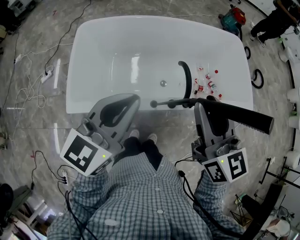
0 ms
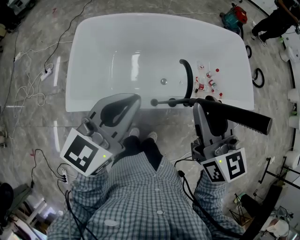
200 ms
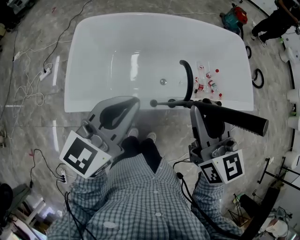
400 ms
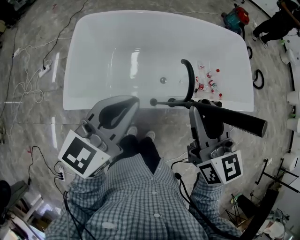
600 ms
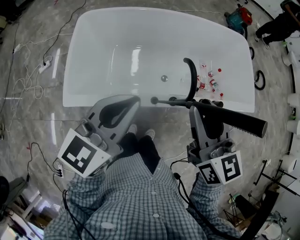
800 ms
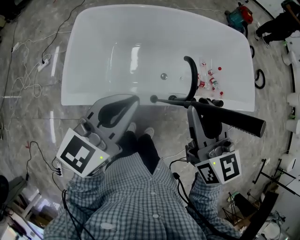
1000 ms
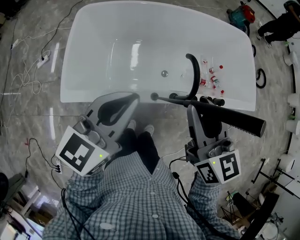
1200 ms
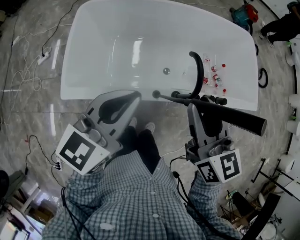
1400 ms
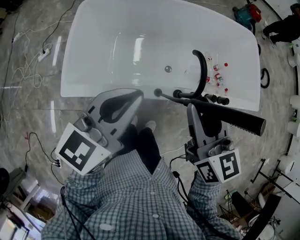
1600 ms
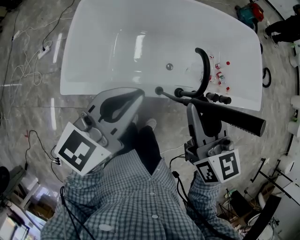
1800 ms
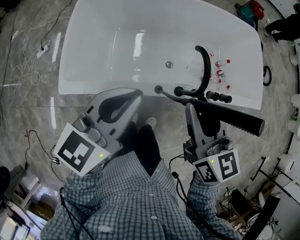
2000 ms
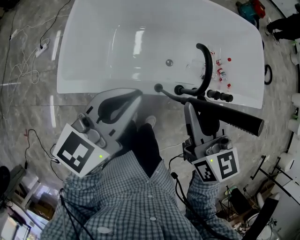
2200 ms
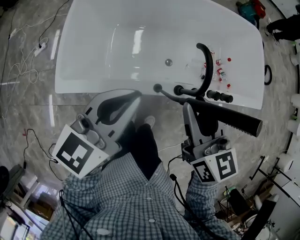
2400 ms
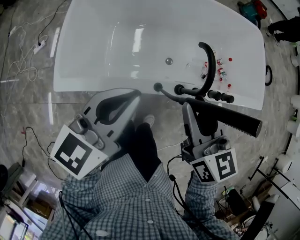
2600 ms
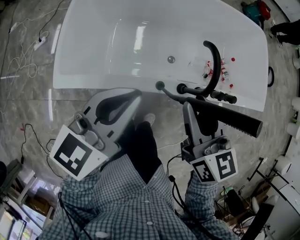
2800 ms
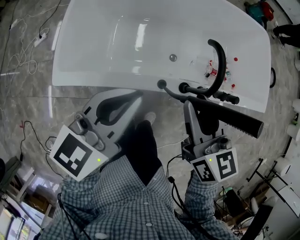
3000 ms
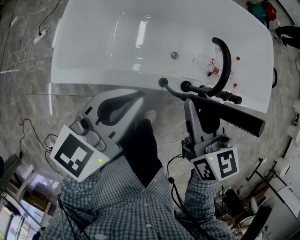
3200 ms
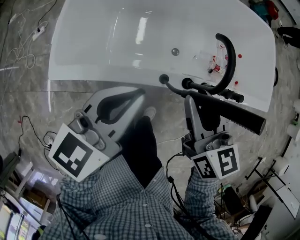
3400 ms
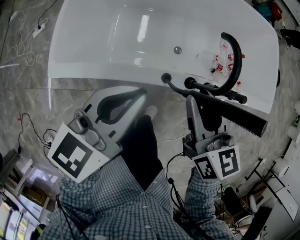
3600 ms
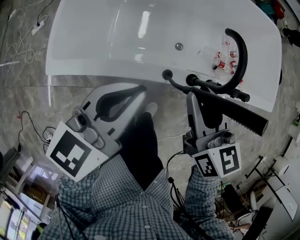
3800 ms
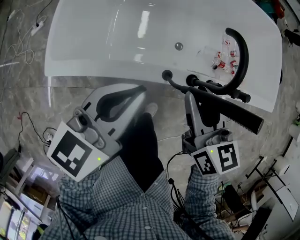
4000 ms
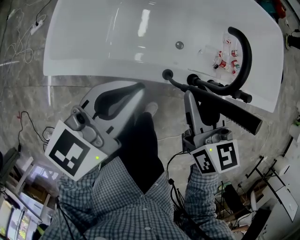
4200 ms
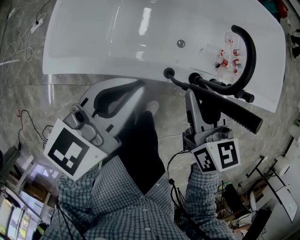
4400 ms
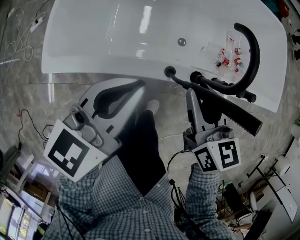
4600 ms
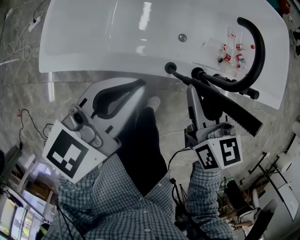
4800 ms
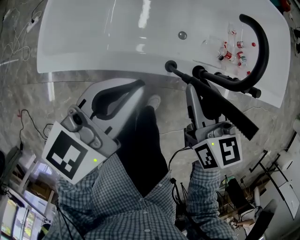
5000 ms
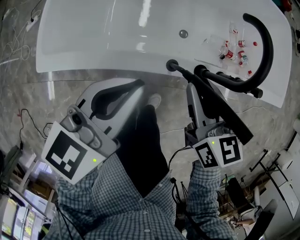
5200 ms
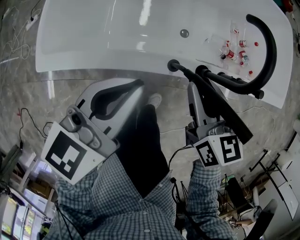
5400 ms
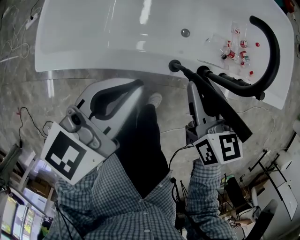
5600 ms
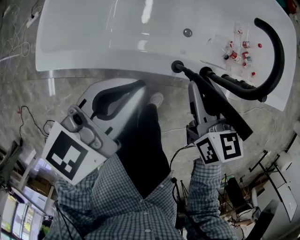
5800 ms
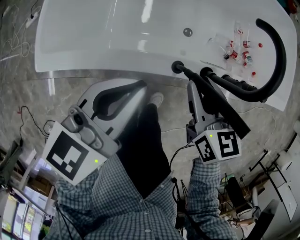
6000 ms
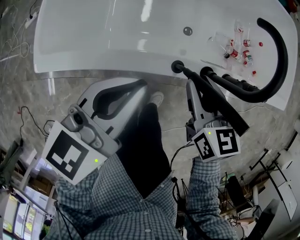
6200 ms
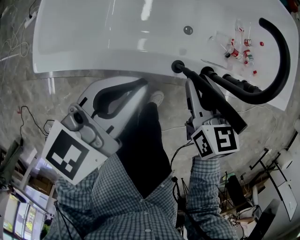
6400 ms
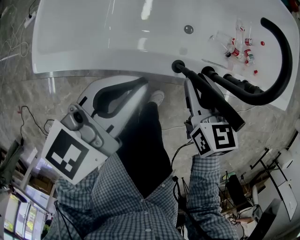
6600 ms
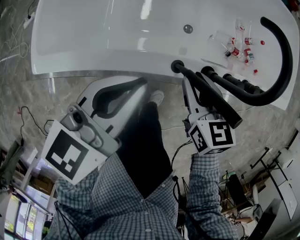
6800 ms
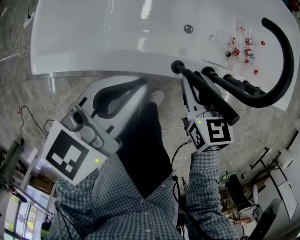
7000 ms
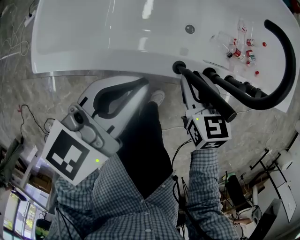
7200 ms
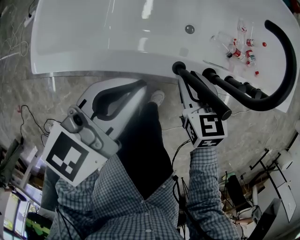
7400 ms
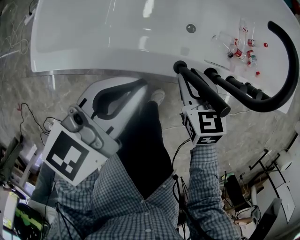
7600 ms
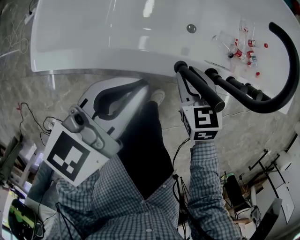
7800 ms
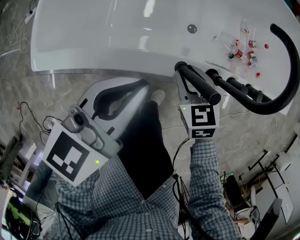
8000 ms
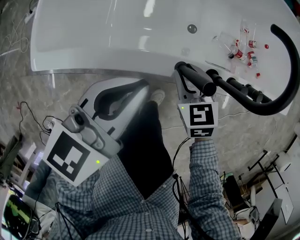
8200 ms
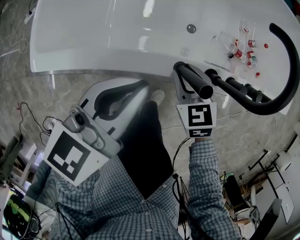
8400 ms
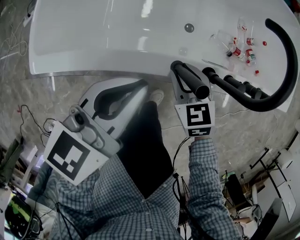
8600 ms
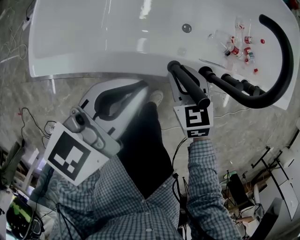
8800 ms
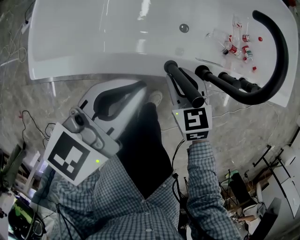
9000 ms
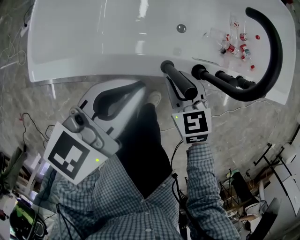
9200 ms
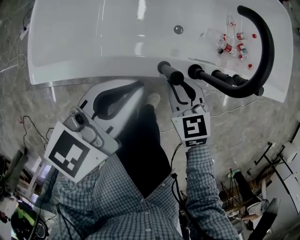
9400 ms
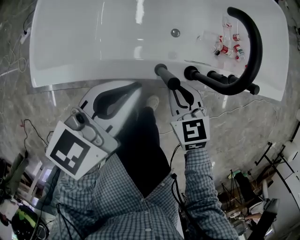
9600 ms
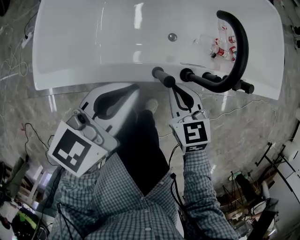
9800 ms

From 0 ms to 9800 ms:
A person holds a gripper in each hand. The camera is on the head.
From 0 ms to 1400 ms: Both grippers travel together downward, some 5 cm.
From 1400 ms to 2800 ms: The grippers both shift downward by about 10 cm.
From 2800 ms to 4200 ms: The two grippers go some 10 cm downward.
From 4200 ms to 5600 ms: The two grippers go some 10 cm downward.
From 5600 ms to 7000 ms: The right gripper shifts roughly 10 cm downward.
From 7000 ms to 8400 ms: The right gripper is displaced downward by approximately 5 cm.
From 8400 ms to 9800 ms: The right gripper is displaced upward by some 10 cm, and closes its fingers. The left gripper goes approximately 5 cm upward.

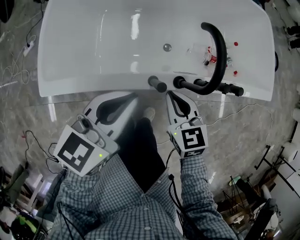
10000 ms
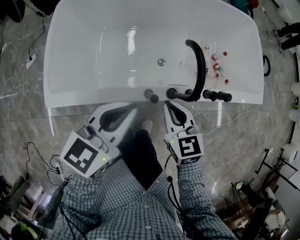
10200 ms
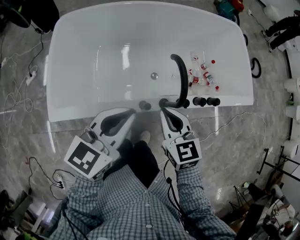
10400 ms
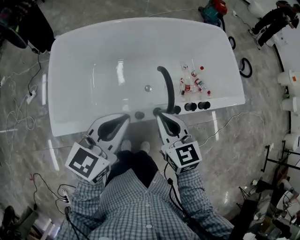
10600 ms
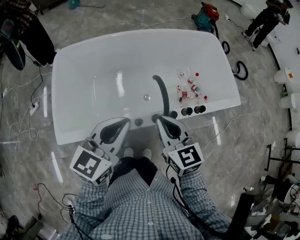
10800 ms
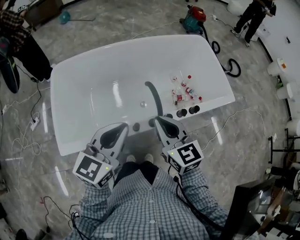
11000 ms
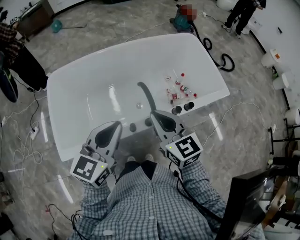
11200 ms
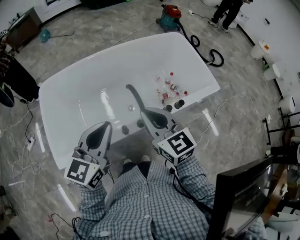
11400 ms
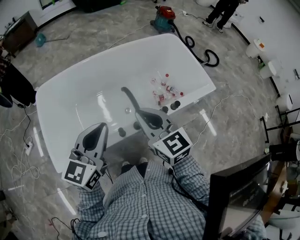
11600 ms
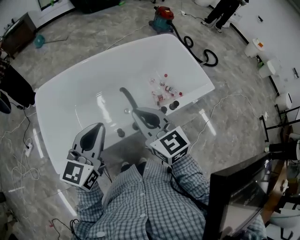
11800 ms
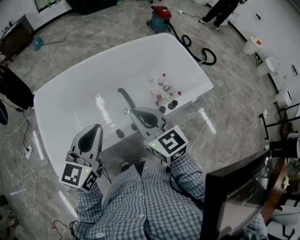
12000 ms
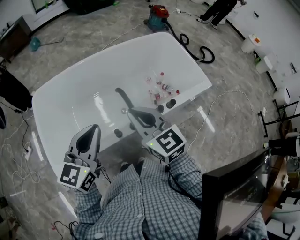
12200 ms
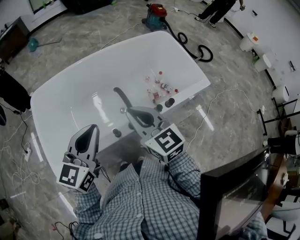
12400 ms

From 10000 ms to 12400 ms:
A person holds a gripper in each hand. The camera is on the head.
From 10000 ms to 11200 ms: Both grippers travel together upward, roughly 25 cm. The right gripper turns by approximately 30 degrees.
From 11200 ms to 12400 ms: There are only small adjustments of the grippers.

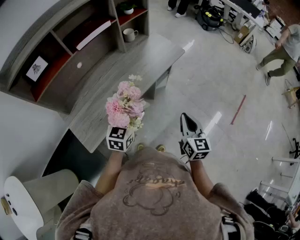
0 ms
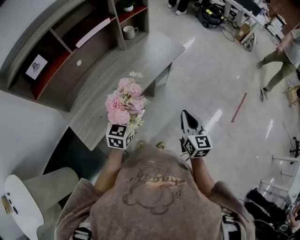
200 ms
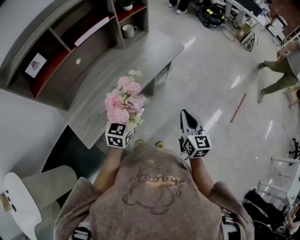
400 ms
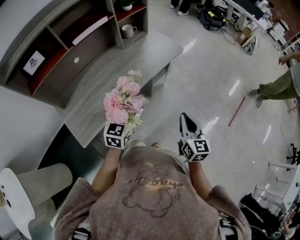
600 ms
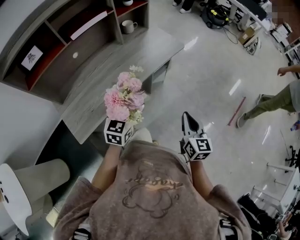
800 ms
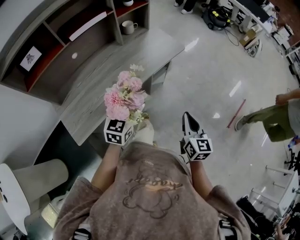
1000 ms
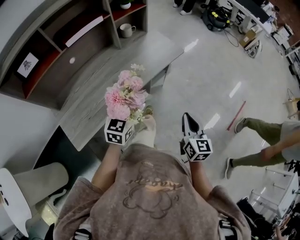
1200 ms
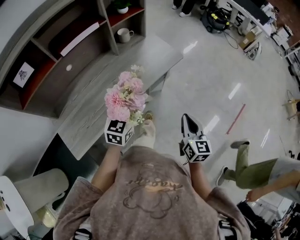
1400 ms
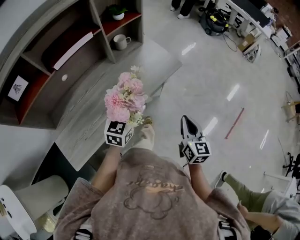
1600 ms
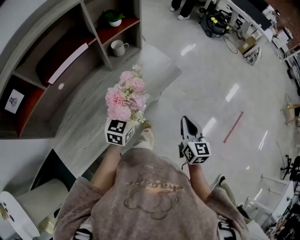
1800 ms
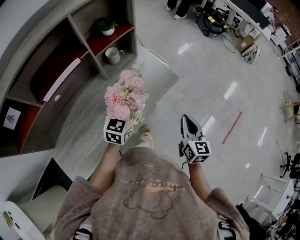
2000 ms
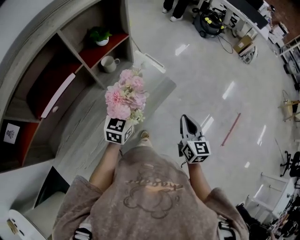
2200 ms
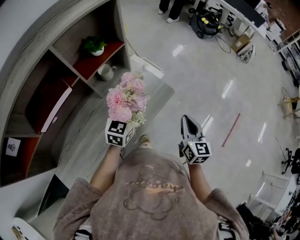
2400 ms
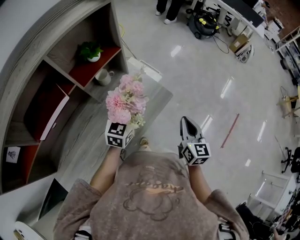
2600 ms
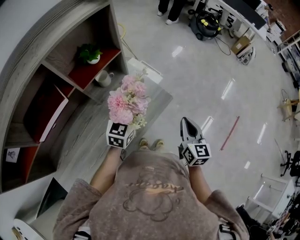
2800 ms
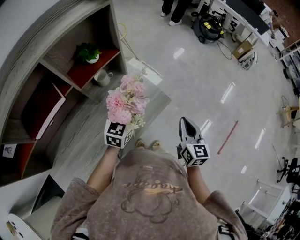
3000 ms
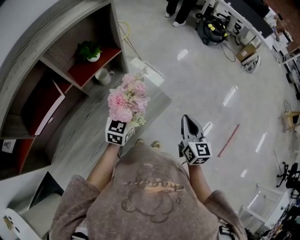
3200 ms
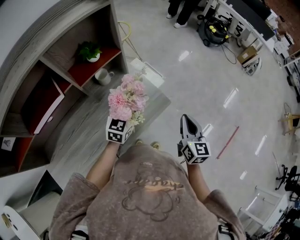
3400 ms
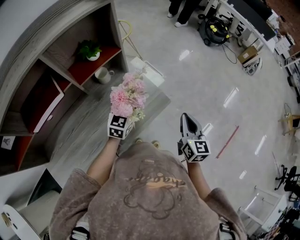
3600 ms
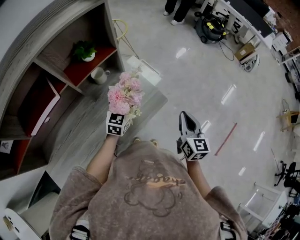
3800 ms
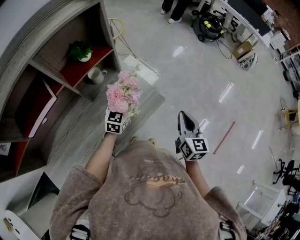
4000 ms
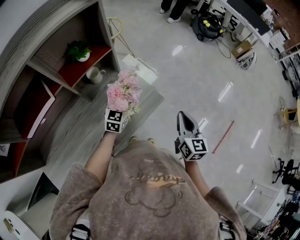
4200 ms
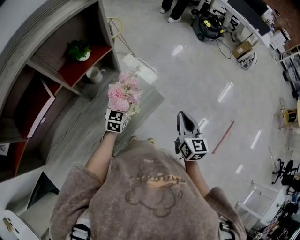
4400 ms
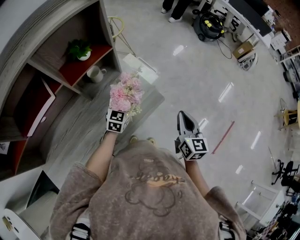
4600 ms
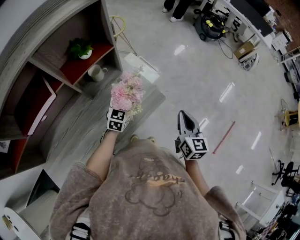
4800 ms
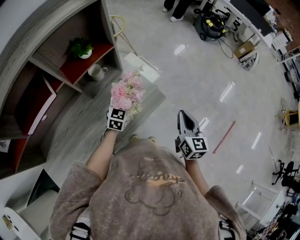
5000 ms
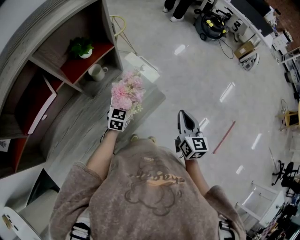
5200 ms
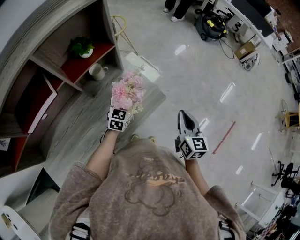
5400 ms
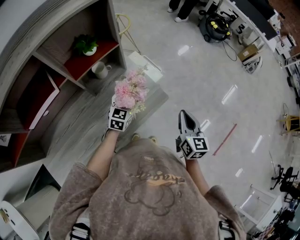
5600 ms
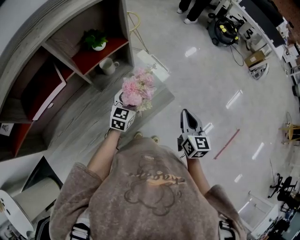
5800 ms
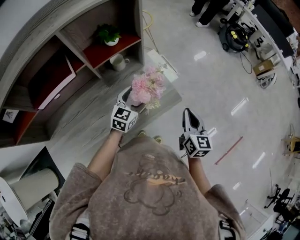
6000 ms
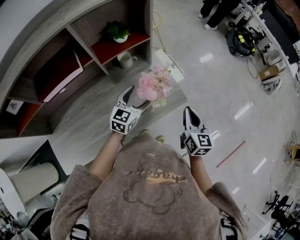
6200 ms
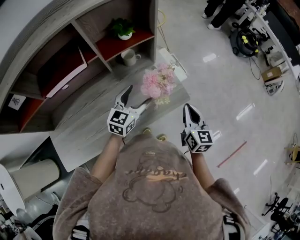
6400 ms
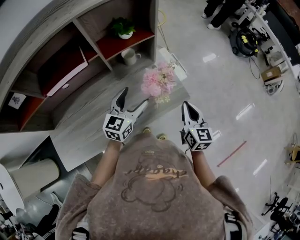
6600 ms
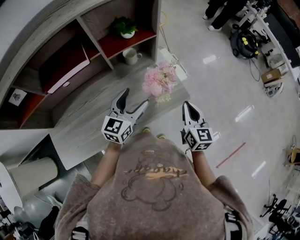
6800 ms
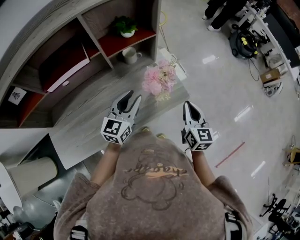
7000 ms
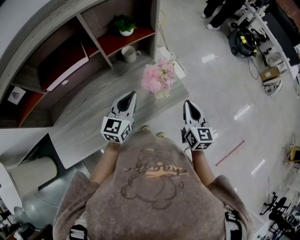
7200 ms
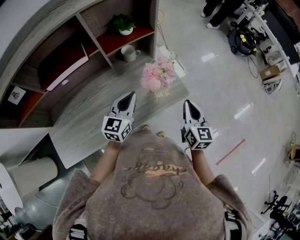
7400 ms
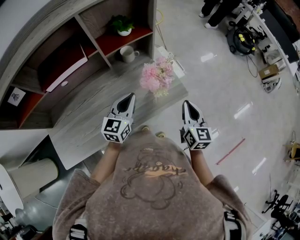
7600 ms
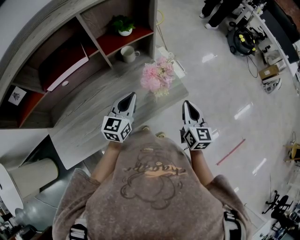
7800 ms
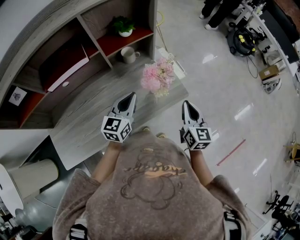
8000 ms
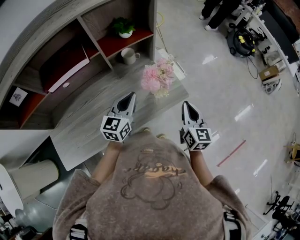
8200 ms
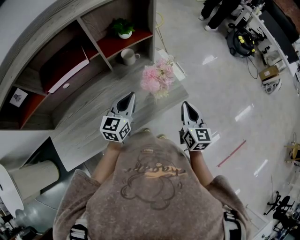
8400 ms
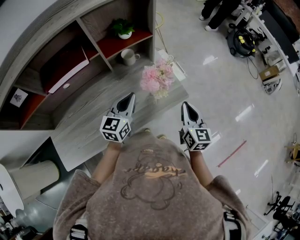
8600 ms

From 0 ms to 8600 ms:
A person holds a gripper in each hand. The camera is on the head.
From 0 ms to 1400 ms: The grippers both shift forward and to the right by some 10 cm.
From 1400 ms to 2800 ms: The grippers both shift forward by some 35 cm.
From 2800 ms to 4400 ms: The left gripper goes roughly 10 cm downward and forward; the right gripper ends up about 5 cm from where it was.
From 4400 ms to 5800 ms: The grippers stay close to where they were, moving slightly.
From 5800 ms to 7200 ms: The left gripper shifts some 15 cm backward, upward and to the left, rotates approximately 20 degrees, and closes up. Meanwhile the right gripper shifts about 5 cm to the left.
From 7200 ms to 8600 ms: The grippers move only a little.

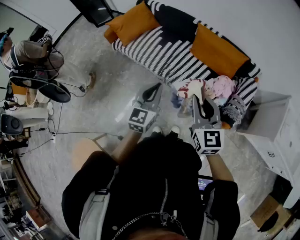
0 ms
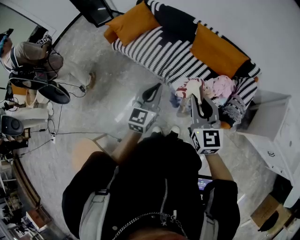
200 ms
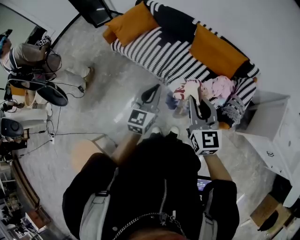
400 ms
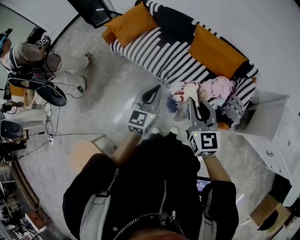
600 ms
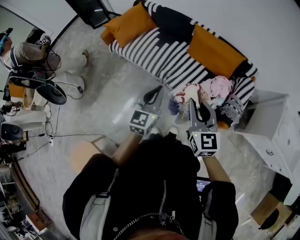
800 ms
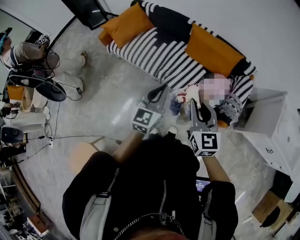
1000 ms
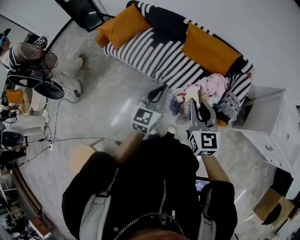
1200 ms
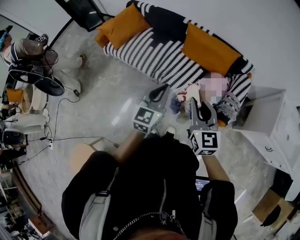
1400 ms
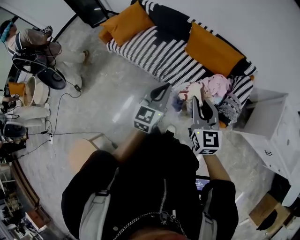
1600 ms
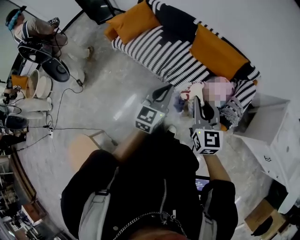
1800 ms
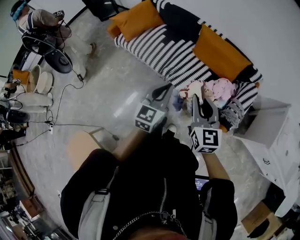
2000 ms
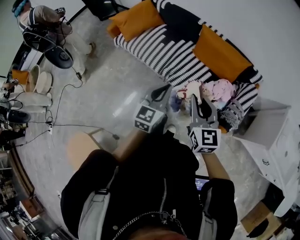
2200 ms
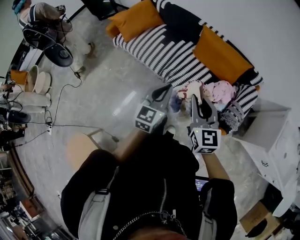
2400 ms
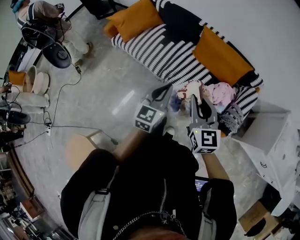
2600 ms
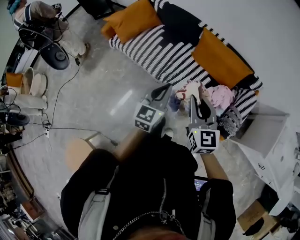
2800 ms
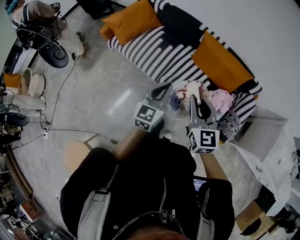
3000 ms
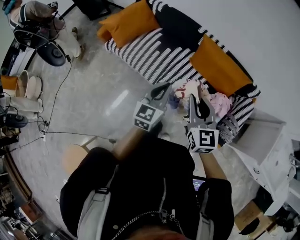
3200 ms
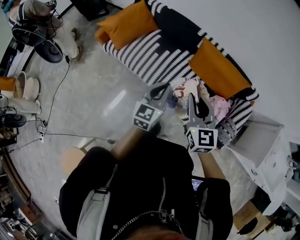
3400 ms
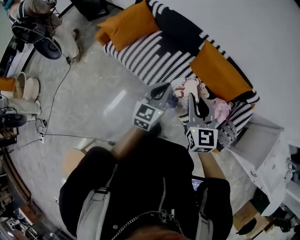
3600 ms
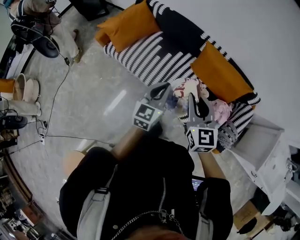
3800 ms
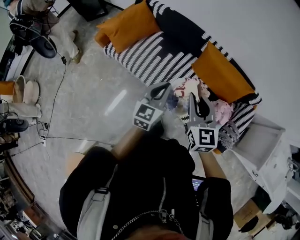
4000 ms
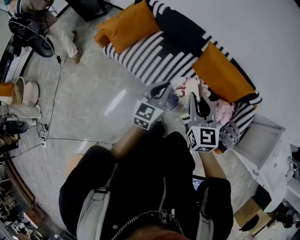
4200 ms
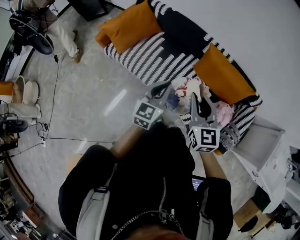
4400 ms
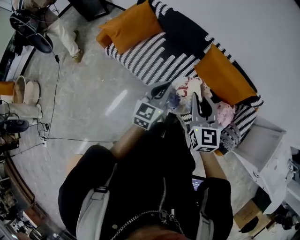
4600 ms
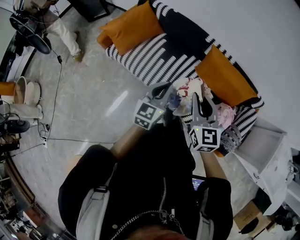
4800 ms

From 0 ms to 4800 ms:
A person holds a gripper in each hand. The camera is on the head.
From 0 ms to 1600 ms: The left gripper moves to the right, roughly 5 cm.
From 1600 ms to 3200 ms: The left gripper goes roughly 20 cm forward; the right gripper moves forward and to the left, approximately 20 cm.
From 3200 ms to 4800 ms: Both grippers travel together forward and to the left, approximately 15 cm.
